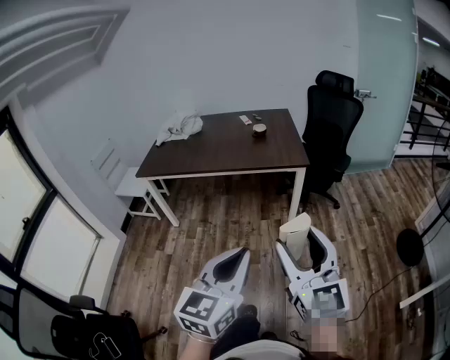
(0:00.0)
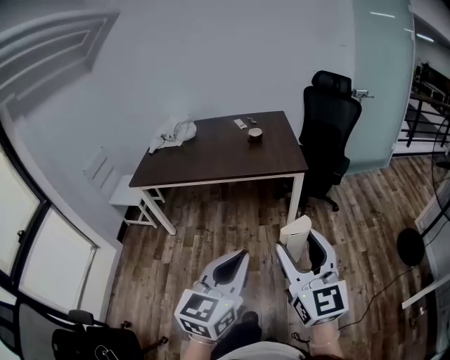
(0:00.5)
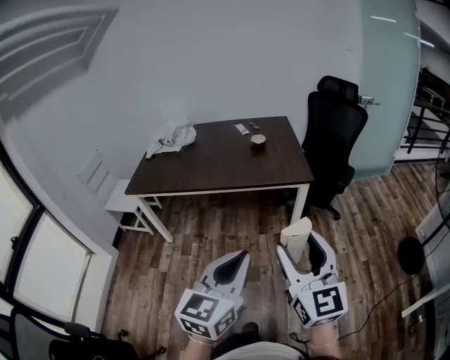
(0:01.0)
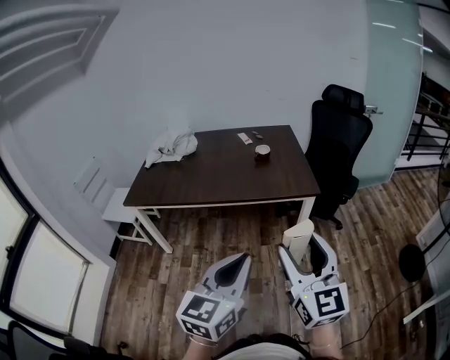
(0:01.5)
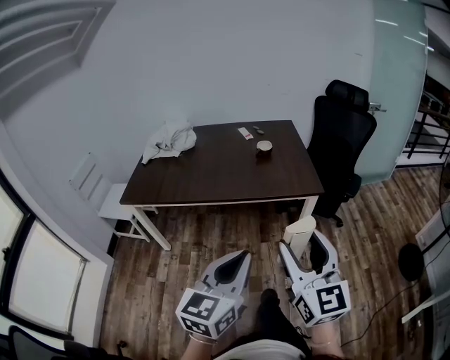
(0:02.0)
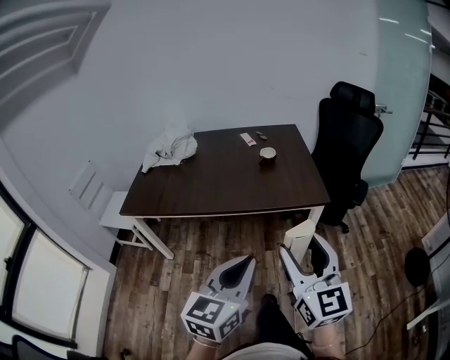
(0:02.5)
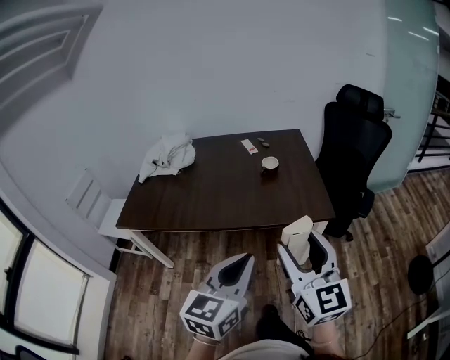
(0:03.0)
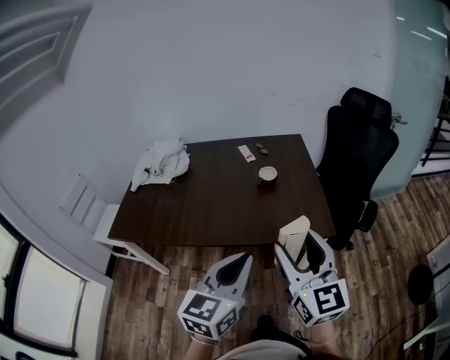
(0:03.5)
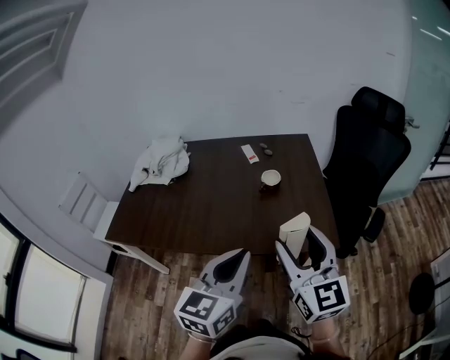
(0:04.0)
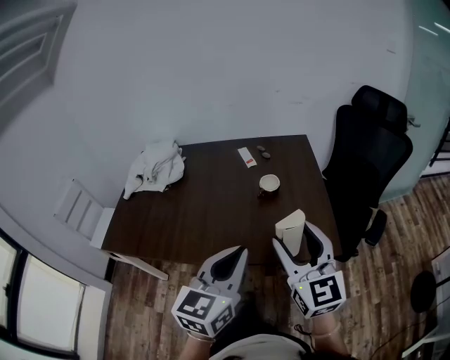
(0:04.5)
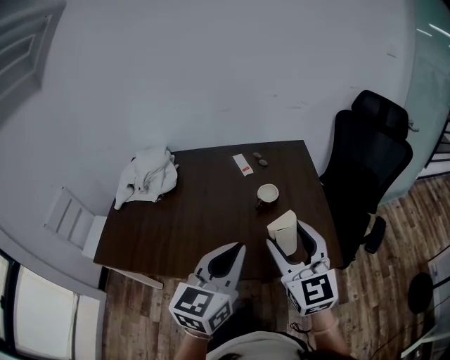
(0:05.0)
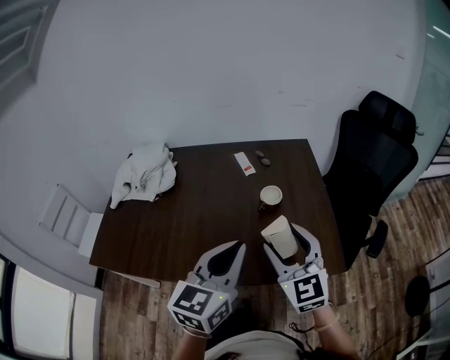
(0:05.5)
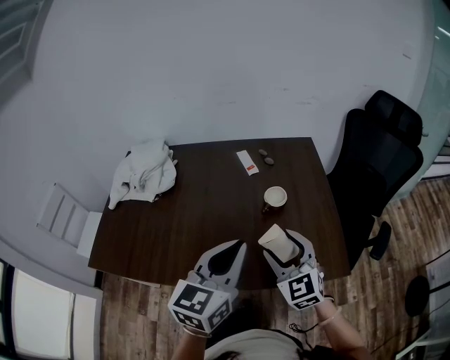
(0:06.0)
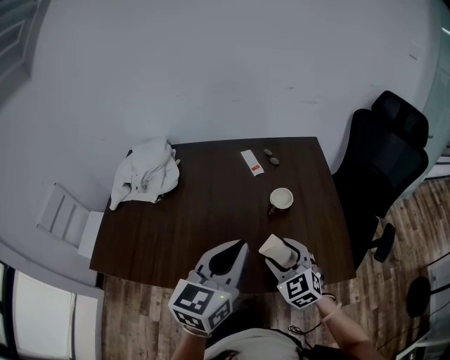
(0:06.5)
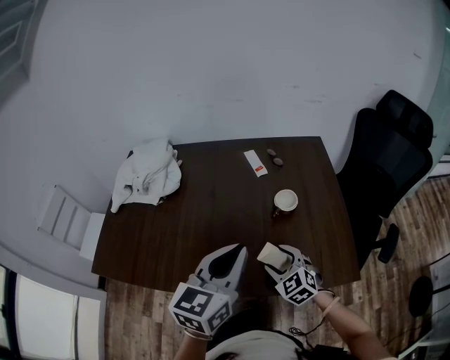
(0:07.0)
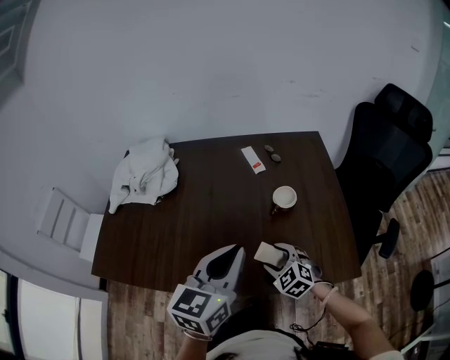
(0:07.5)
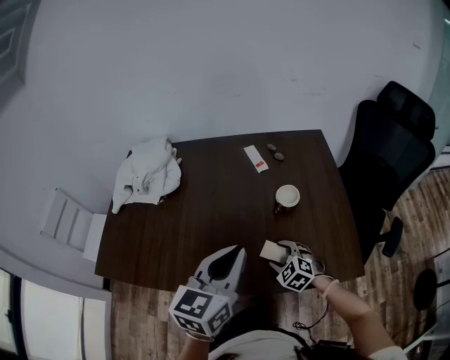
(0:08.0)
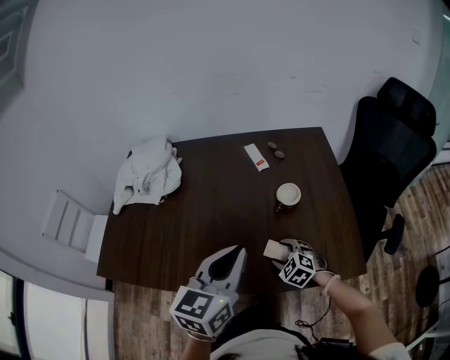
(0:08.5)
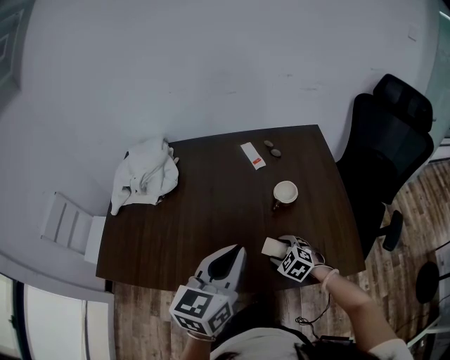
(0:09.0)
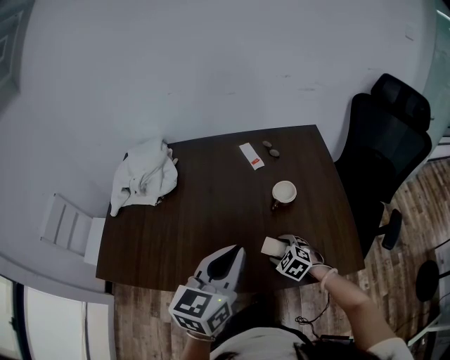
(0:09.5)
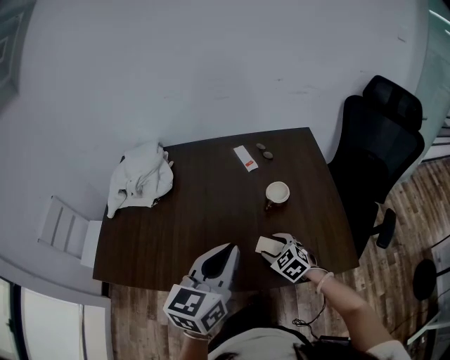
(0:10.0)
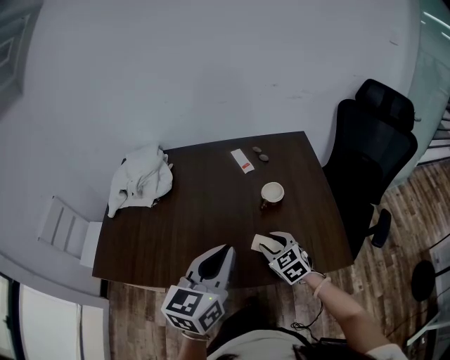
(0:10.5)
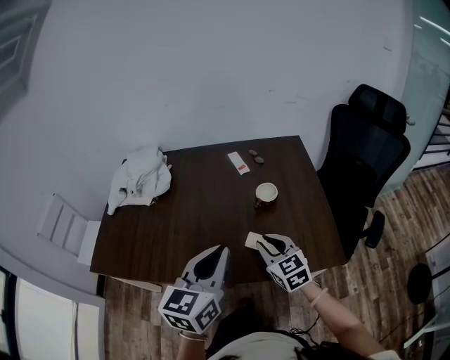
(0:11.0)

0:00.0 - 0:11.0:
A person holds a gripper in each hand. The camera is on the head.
0:00.0 - 0:02.0: The grippers both shift forward and to the left by some 30 cm.
0:02.0 - 0:03.5: Both grippers move forward, roughly 30 cm.
0:03.5 - 0:05.5: The grippers both shift forward by some 30 cm. The right gripper rotates roughly 20 degrees.
0:05.5 - 0:07.5: The right gripper goes about 25 cm downward, and tips its fingers downward by approximately 30 degrees. Meanwhile the left gripper moves forward and to the left, approximately 10 cm.
0:07.5 - 0:09.0: The right gripper travels downward by approximately 5 cm.
0:09.0 - 0:11.0: The right gripper moves upward and backward, some 20 cm, rotates about 40 degrees, and closes its fingers. The left gripper moves backward, about 10 cm.

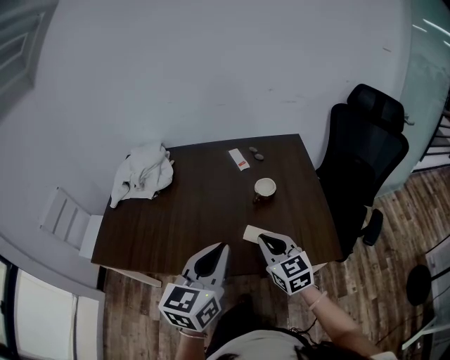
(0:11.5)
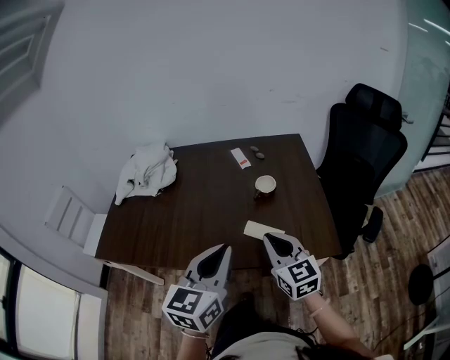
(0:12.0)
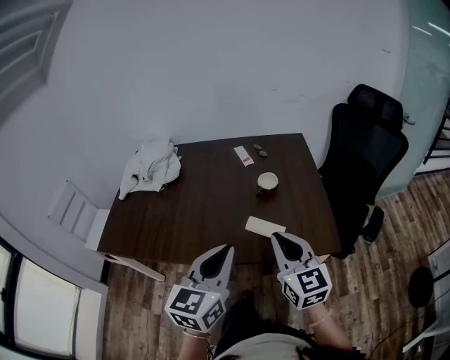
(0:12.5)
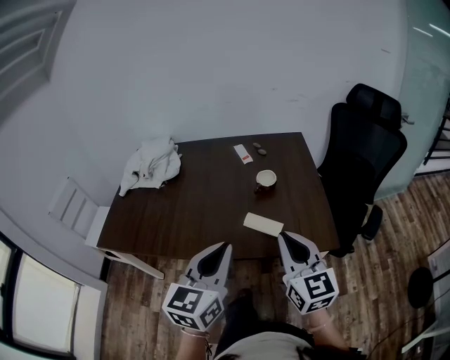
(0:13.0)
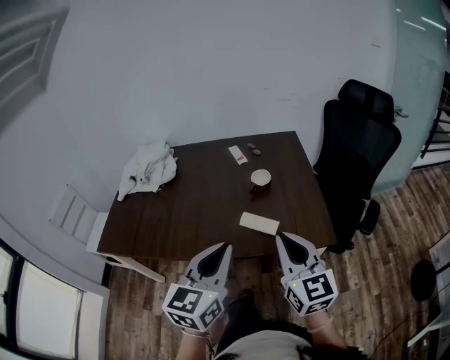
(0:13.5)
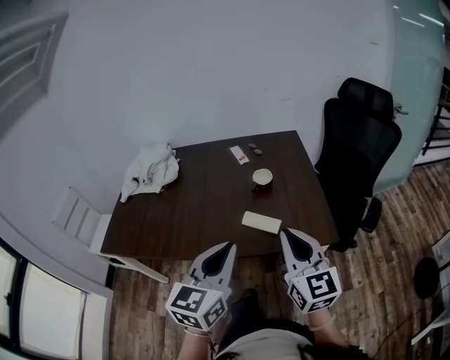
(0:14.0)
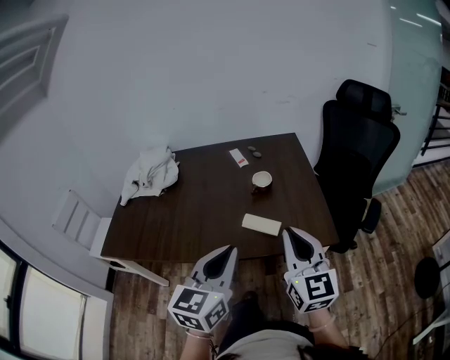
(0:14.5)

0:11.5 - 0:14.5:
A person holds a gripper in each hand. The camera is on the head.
0:11.5 - 0:13.0: The left gripper is displaced backward by approximately 10 cm. Meanwhile the right gripper moves backward, upward and to the right, about 15 cm.
0:13.0 - 0:14.5: There are only small adjustments of the grippers.

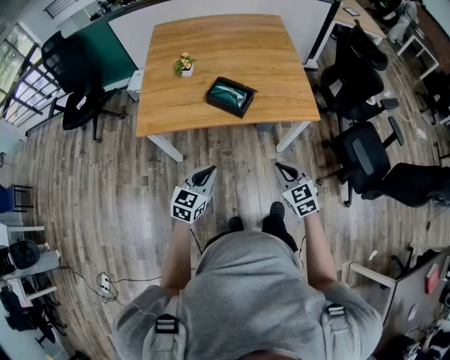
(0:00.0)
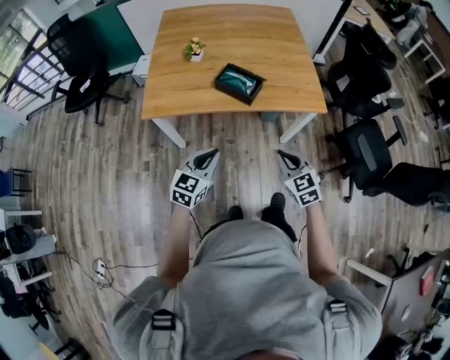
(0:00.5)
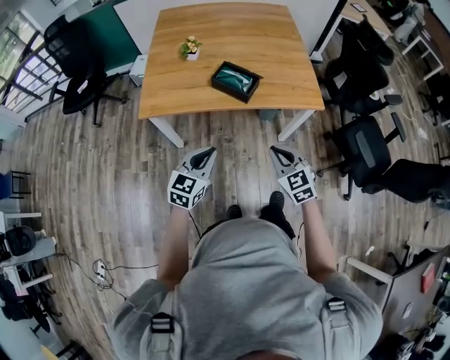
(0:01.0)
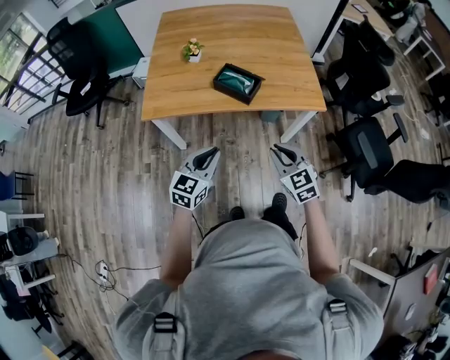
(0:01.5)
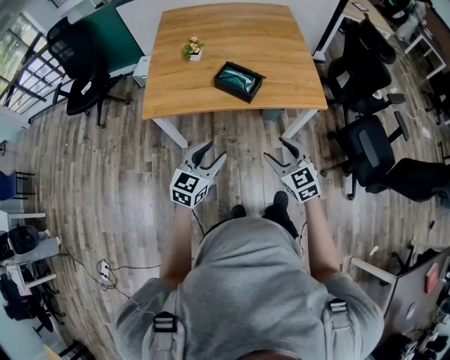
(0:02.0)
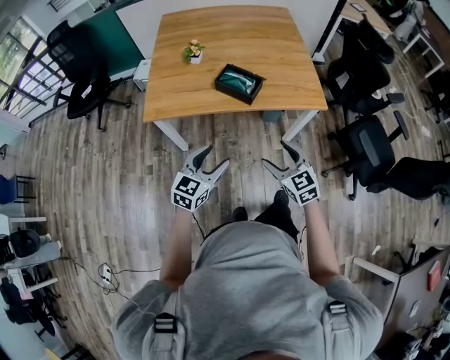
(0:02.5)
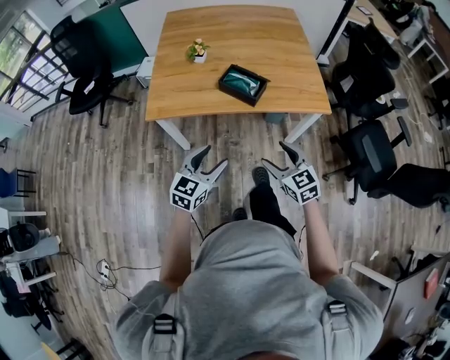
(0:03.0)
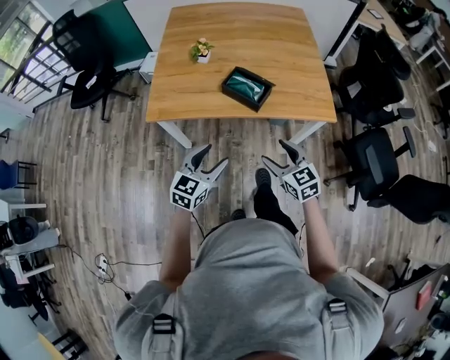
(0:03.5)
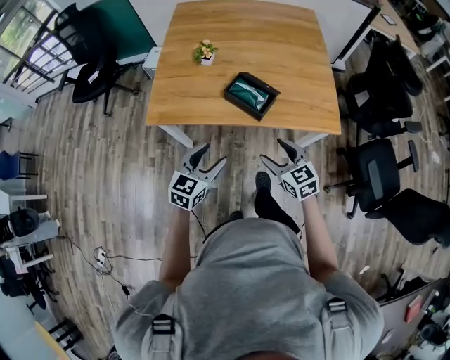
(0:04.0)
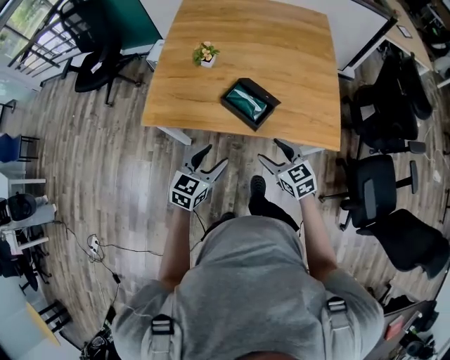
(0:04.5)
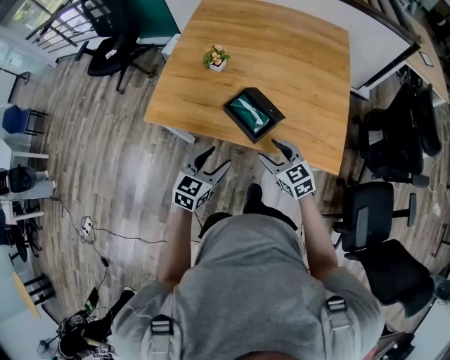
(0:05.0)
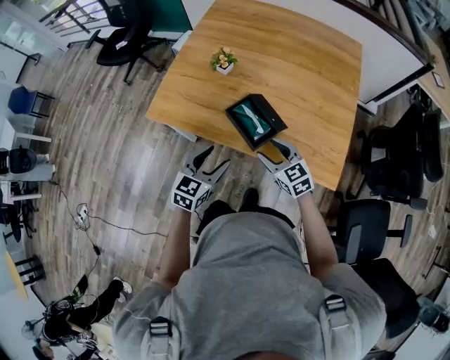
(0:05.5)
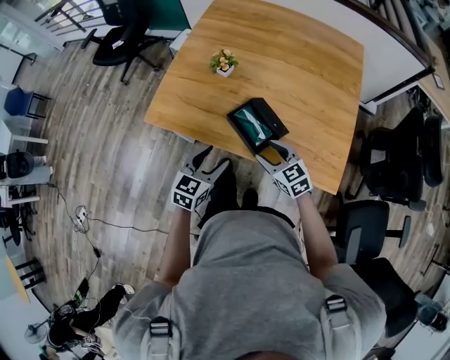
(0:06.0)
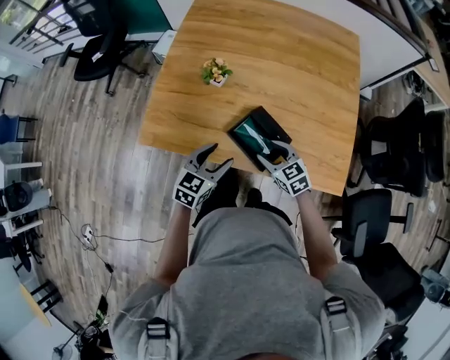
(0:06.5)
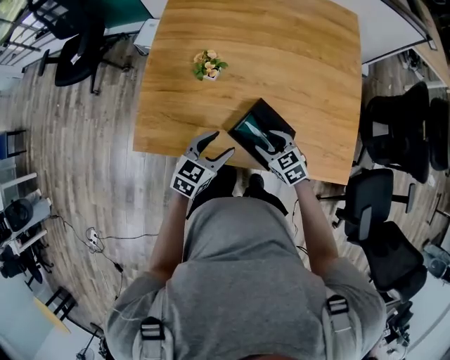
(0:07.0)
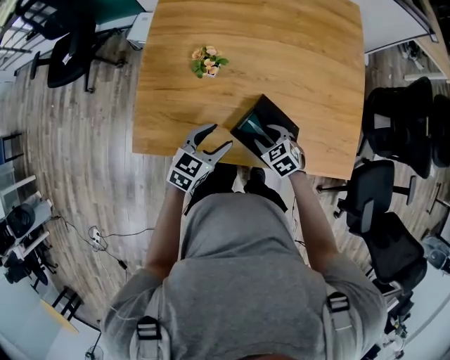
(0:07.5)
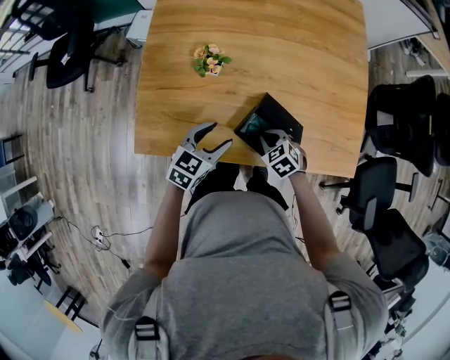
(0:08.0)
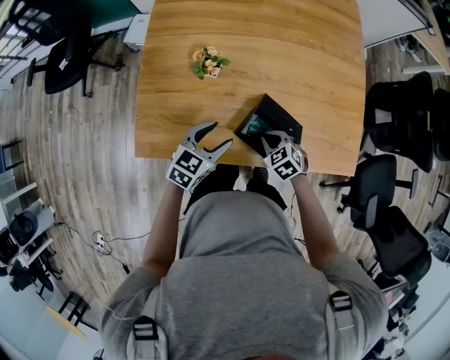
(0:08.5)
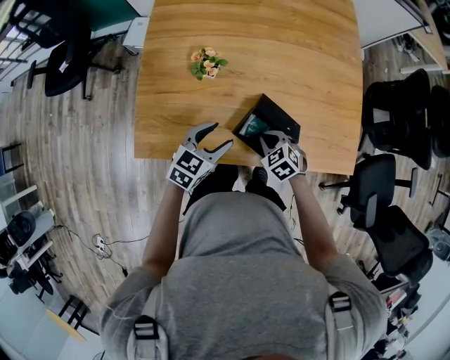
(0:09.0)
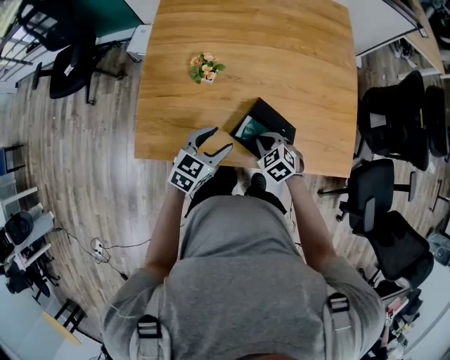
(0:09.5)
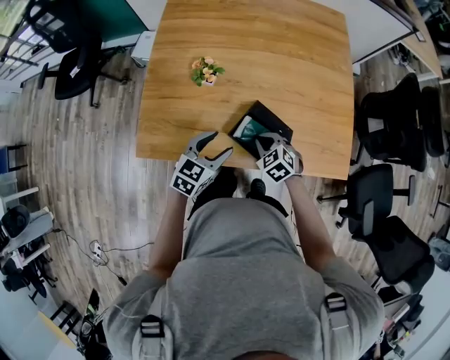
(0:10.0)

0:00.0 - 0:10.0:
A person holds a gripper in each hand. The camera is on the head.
0:00.0 - 0:02.0: The right gripper changes place by about 5 cm, and opens its fingers. Meanwhile the left gripper opens.
0:02.0 - 0:04.0: The two grippers go about 10 cm forward.
0:04.0 - 0:06.0: The left gripper shifts roughly 15 cm forward and to the right; the right gripper goes roughly 20 cm forward, and rotates about 20 degrees.
0:06.0 - 0:08.0: The left gripper shifts roughly 20 cm forward and downward, and swivels about 30 degrees. Meanwhile the right gripper is displaced downward and forward by some 20 cm, points its fingers approximately 30 degrees further downward, and closes its fingers.
0:08.0 - 0:10.0: The left gripper shifts by approximately 5 cm; the right gripper travels upward by about 5 cm.

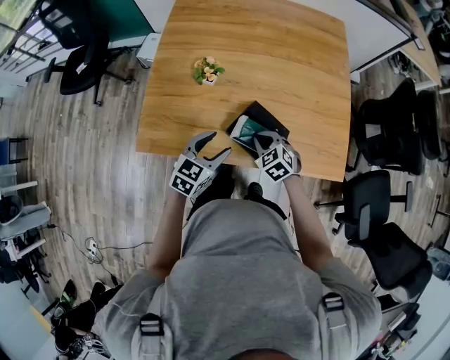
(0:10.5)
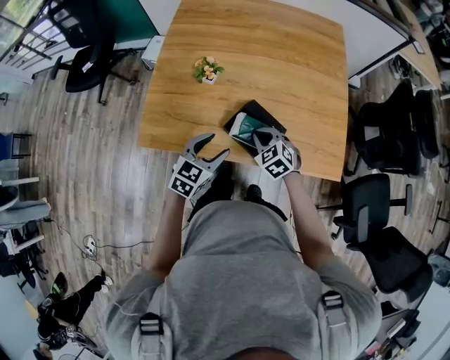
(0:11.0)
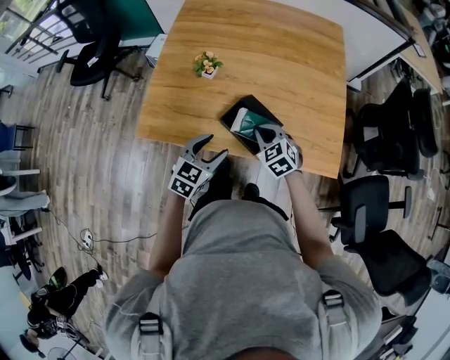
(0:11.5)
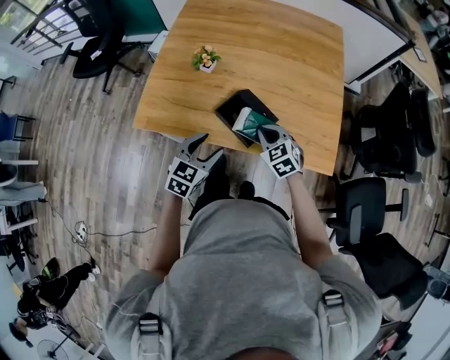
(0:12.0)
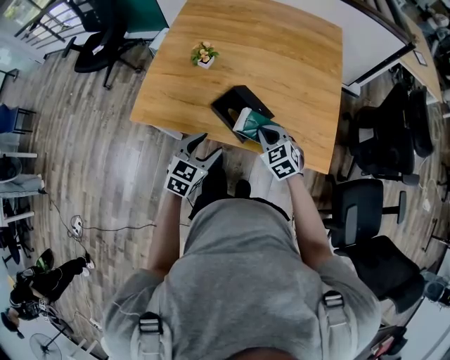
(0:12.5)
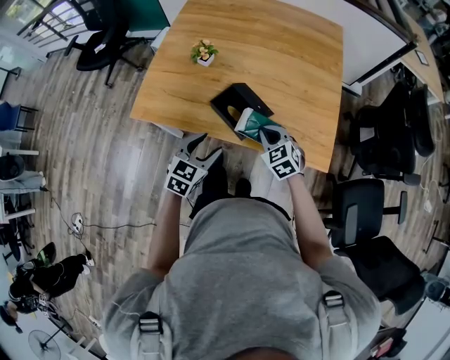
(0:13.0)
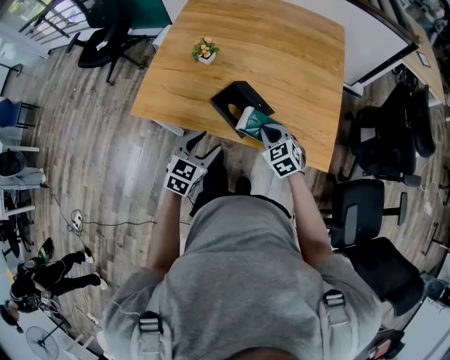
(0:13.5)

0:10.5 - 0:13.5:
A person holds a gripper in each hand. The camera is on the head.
0:10.5 - 0:12.0: The left gripper heads backward, covering approximately 10 cm. The right gripper moves to the right, backward and upward, about 10 cm.
0:12.0 - 0:13.5: The right gripper shifts by about 5 cm.
